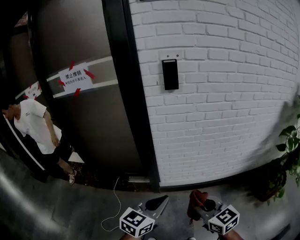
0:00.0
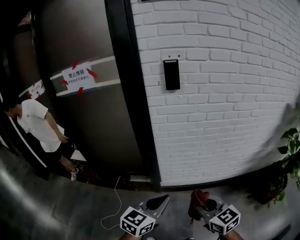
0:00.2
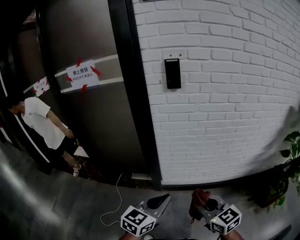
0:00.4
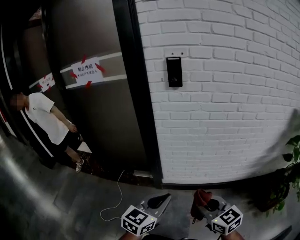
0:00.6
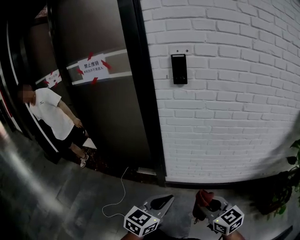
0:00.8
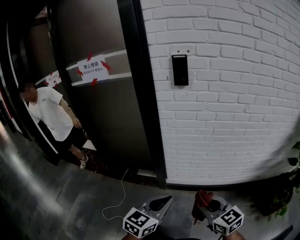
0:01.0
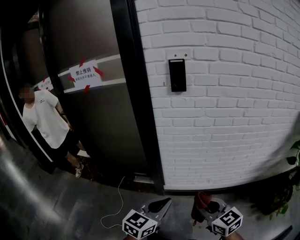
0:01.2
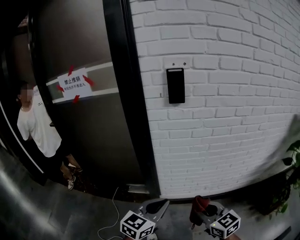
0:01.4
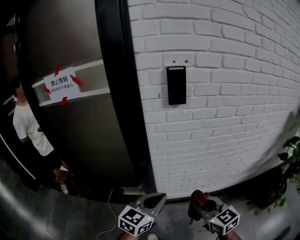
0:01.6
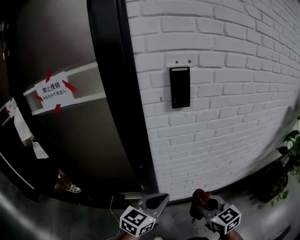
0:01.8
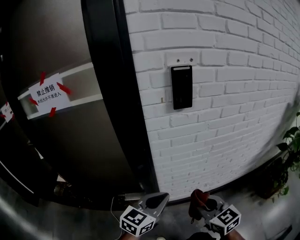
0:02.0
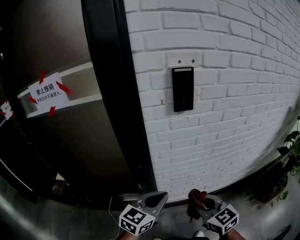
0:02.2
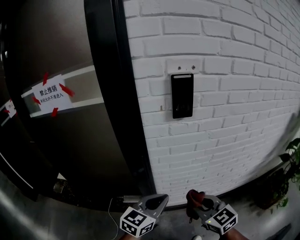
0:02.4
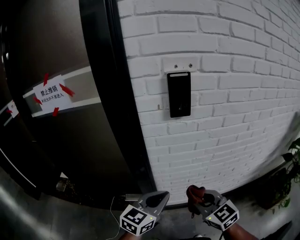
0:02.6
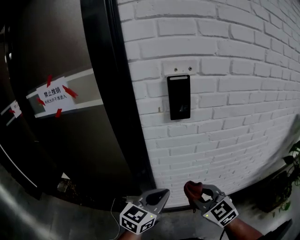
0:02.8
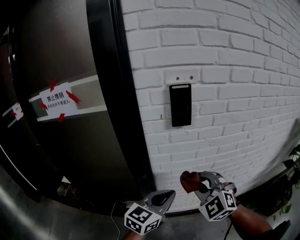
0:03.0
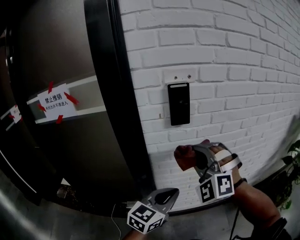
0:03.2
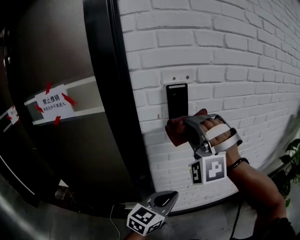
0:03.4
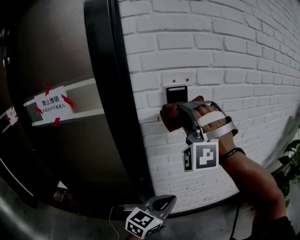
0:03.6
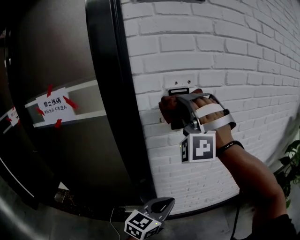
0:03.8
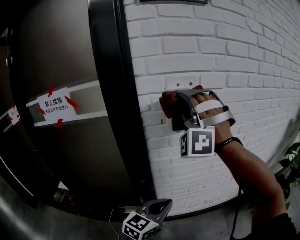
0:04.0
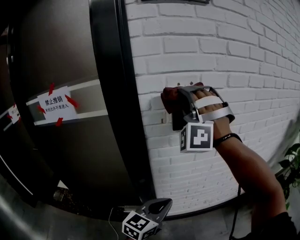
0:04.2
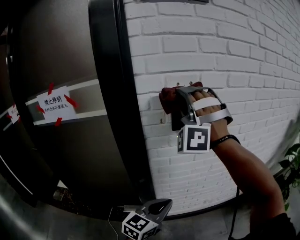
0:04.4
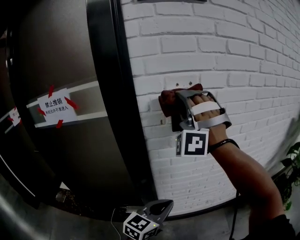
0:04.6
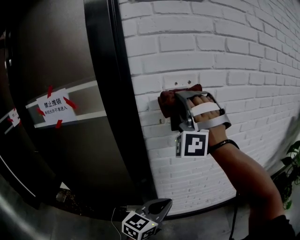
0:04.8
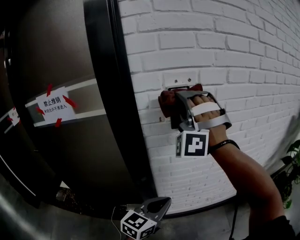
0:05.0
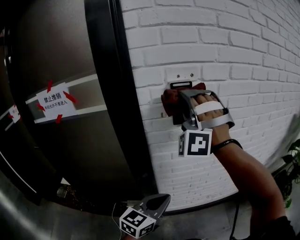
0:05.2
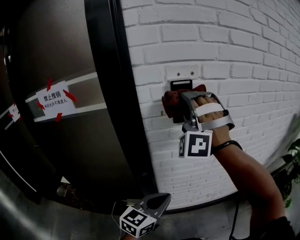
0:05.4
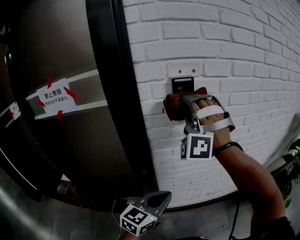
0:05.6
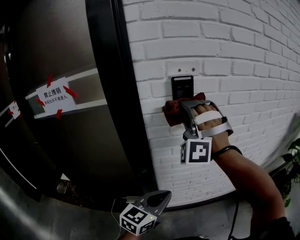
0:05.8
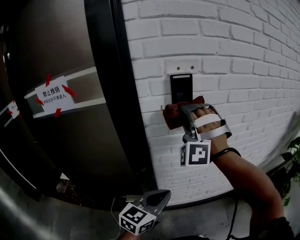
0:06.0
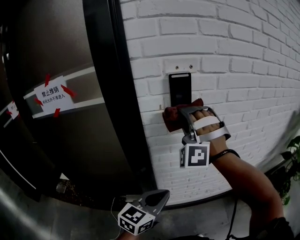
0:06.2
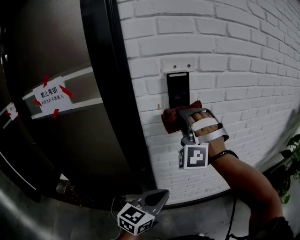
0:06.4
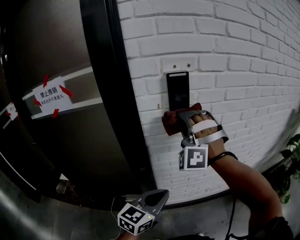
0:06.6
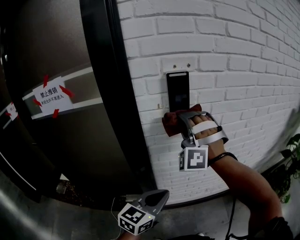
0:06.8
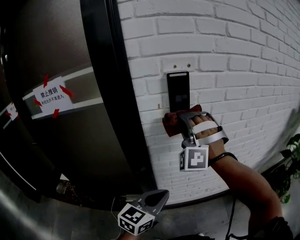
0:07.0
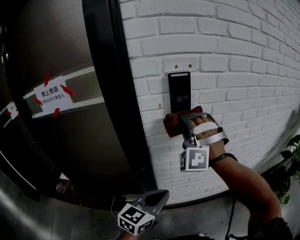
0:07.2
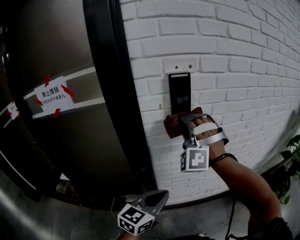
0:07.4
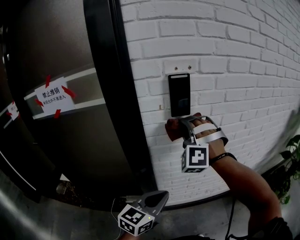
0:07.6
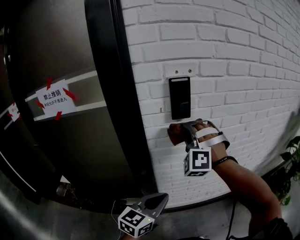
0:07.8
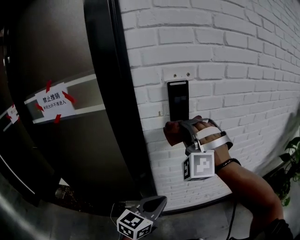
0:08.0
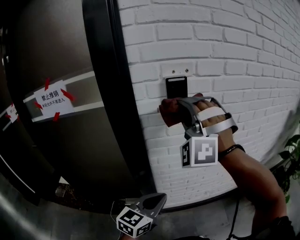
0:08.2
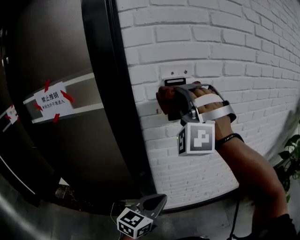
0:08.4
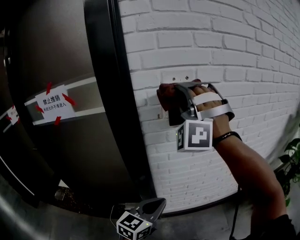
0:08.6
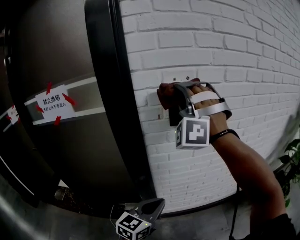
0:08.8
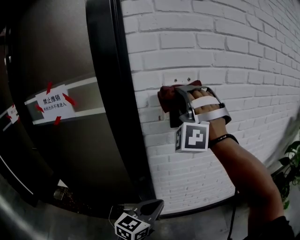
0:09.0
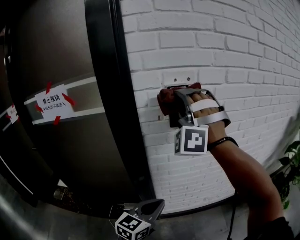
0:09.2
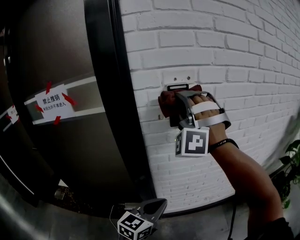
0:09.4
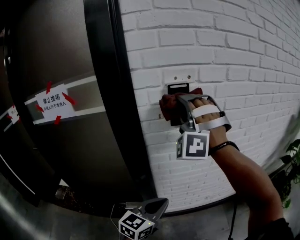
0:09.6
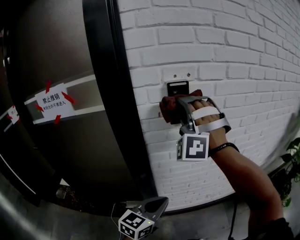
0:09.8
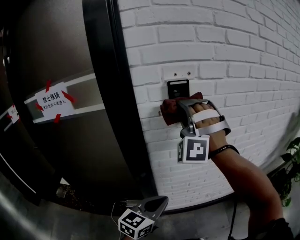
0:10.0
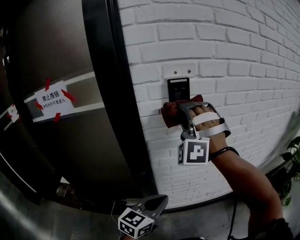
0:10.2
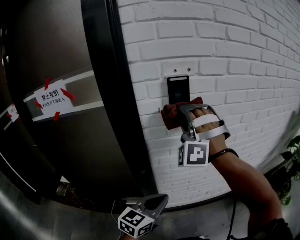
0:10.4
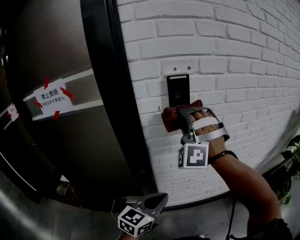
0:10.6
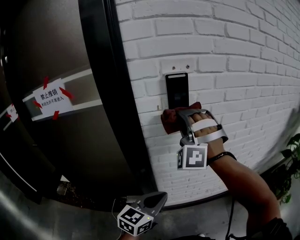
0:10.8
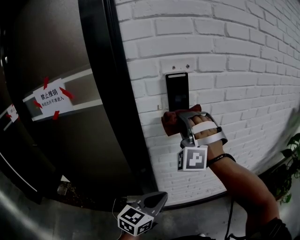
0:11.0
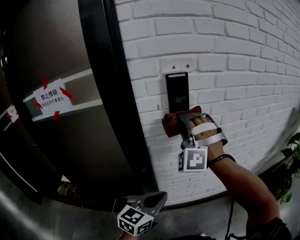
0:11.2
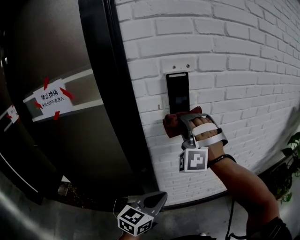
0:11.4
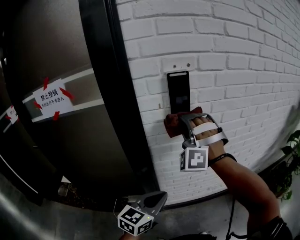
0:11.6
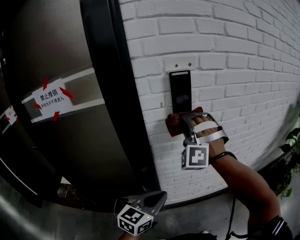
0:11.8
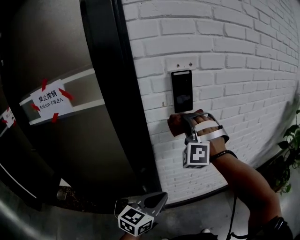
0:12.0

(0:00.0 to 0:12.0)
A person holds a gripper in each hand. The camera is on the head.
0:00.0 - 0:01.6: Both grippers move forward, roughly 15 cm.
0:01.6 - 0:03.0: The left gripper shifts roughly 10 cm forward and upward; the right gripper moves forward and upward, about 20 cm, and rolls counterclockwise, seen from behind, by some 50 degrees.
0:03.0 - 0:04.4: The right gripper travels upward and forward by approximately 30 cm, and points its fingers approximately 30 degrees further upward.
0:04.4 - 0:06.0: The right gripper travels downward by some 10 cm.
0:06.0 - 0:07.6: The right gripper travels downward by approximately 5 cm.
0:07.6 - 0:09.0: The right gripper is displaced upward by roughly 15 cm, and changes its angle by approximately 20 degrees.
0:09.0 - 0:10.4: The right gripper moves downward, approximately 10 cm.
0:10.4 - 0:12.0: The right gripper travels downward by some 5 cm.

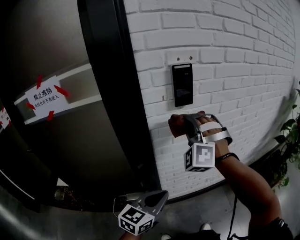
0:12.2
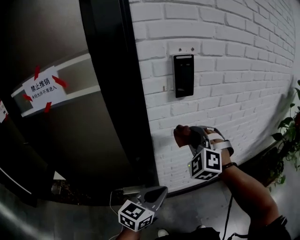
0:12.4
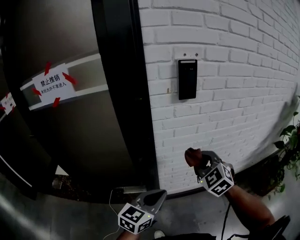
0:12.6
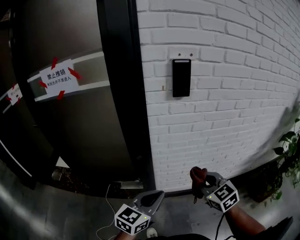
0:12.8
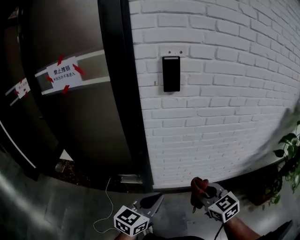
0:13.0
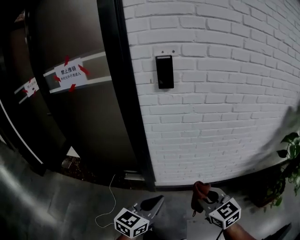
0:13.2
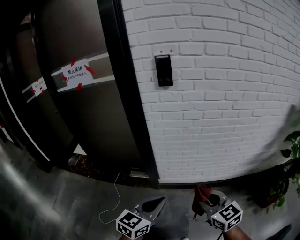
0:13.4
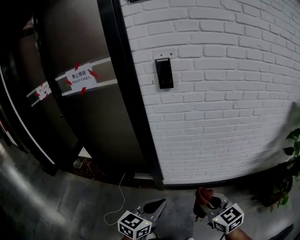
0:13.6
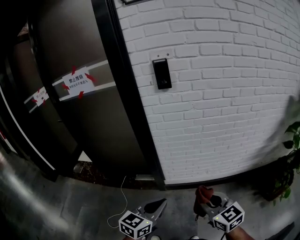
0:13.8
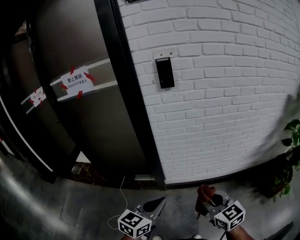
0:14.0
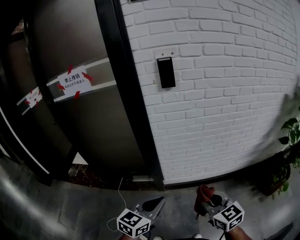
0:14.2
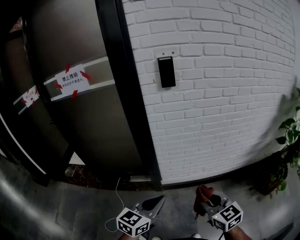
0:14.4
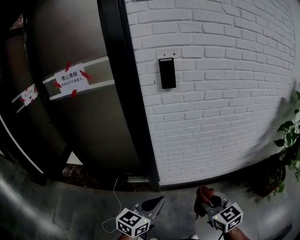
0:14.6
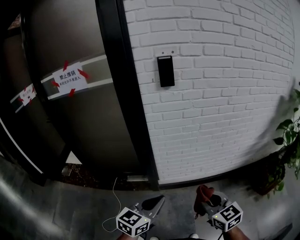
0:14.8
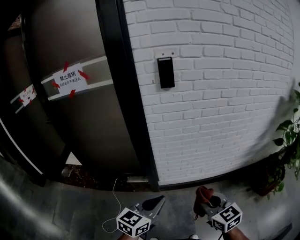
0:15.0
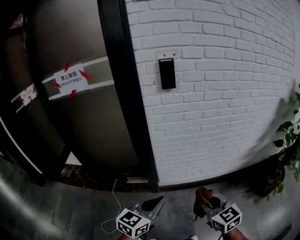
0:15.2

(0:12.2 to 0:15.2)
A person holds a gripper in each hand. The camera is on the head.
0:12.2 - 0:13.8: The right gripper changes place by some 50 cm, and twists some 80 degrees clockwise, seen from behind. Meanwhile the left gripper changes place by some 25 cm.
0:13.8 - 0:15.2: The left gripper heads to the left, covering about 5 cm.

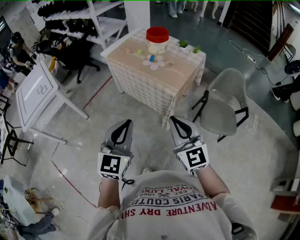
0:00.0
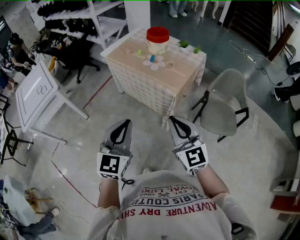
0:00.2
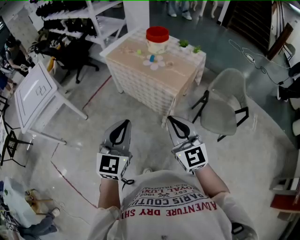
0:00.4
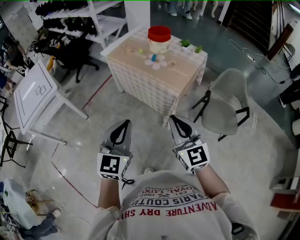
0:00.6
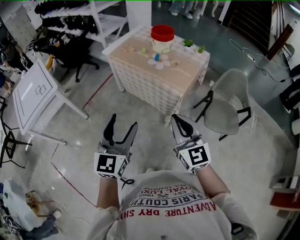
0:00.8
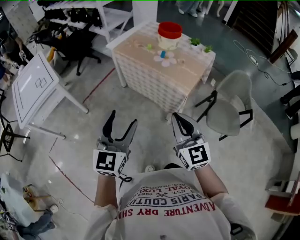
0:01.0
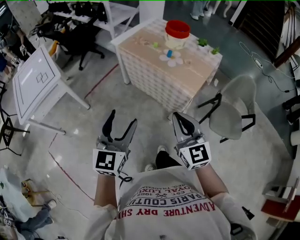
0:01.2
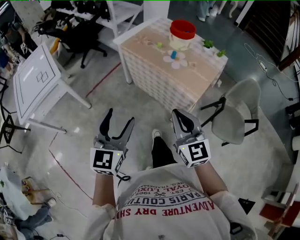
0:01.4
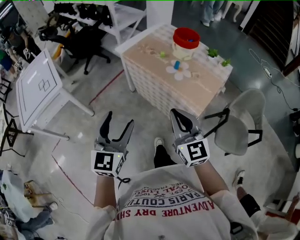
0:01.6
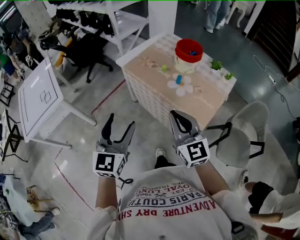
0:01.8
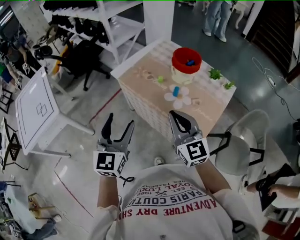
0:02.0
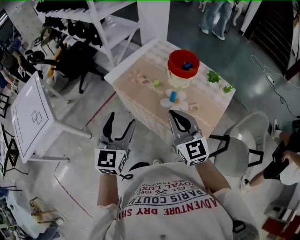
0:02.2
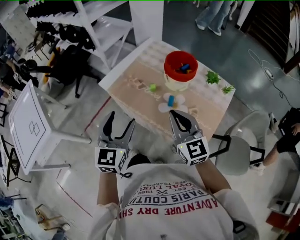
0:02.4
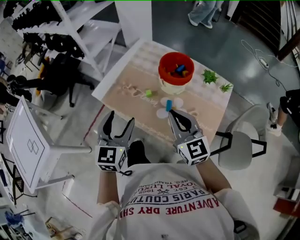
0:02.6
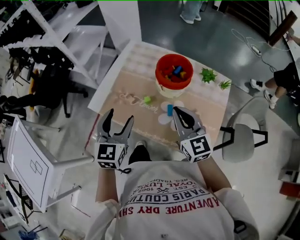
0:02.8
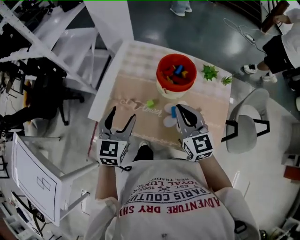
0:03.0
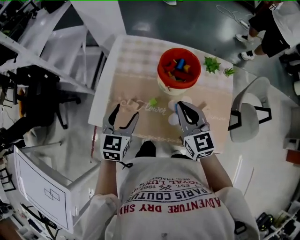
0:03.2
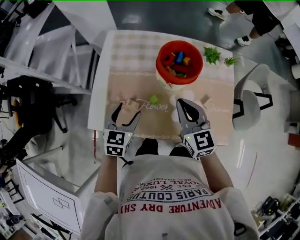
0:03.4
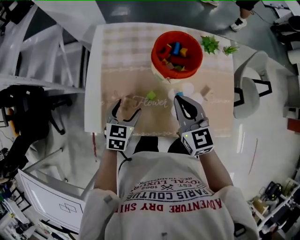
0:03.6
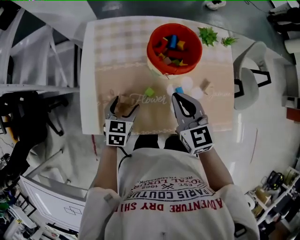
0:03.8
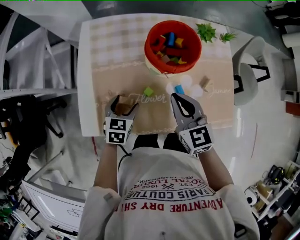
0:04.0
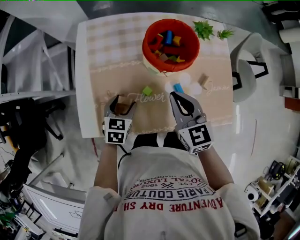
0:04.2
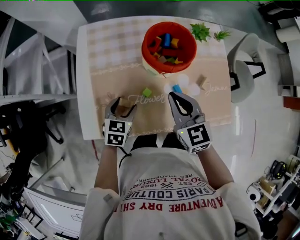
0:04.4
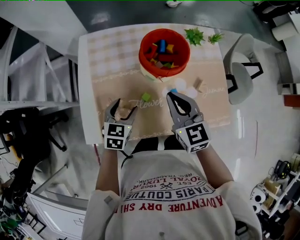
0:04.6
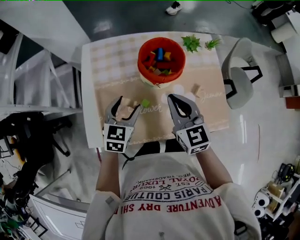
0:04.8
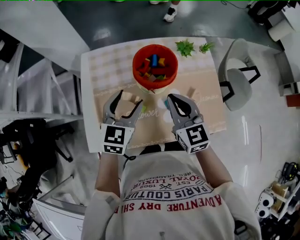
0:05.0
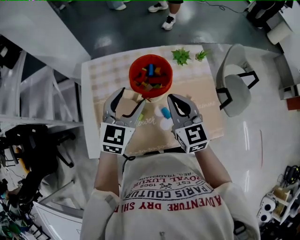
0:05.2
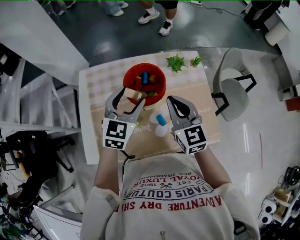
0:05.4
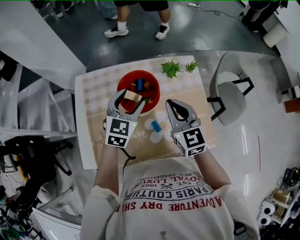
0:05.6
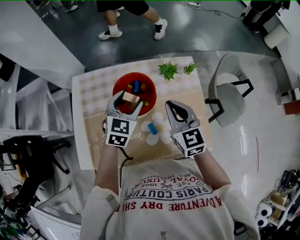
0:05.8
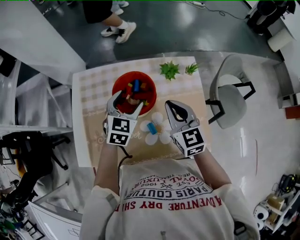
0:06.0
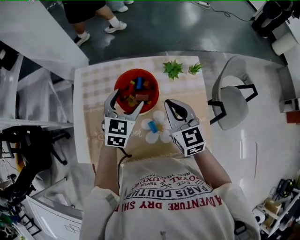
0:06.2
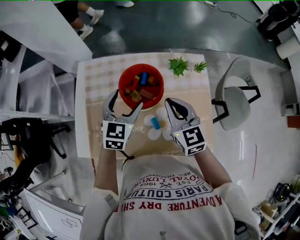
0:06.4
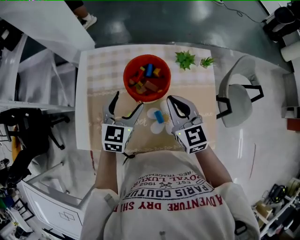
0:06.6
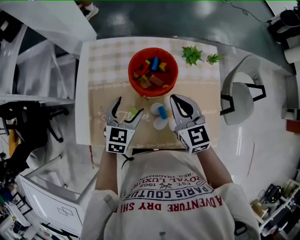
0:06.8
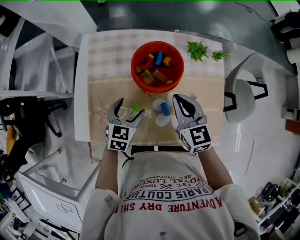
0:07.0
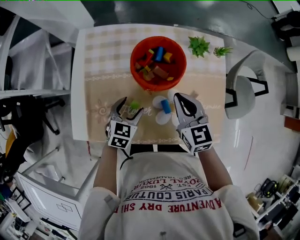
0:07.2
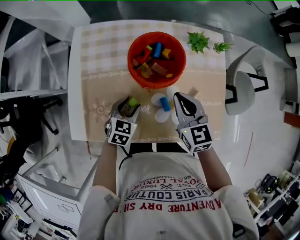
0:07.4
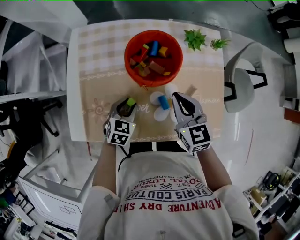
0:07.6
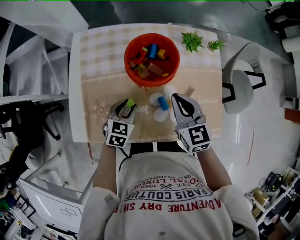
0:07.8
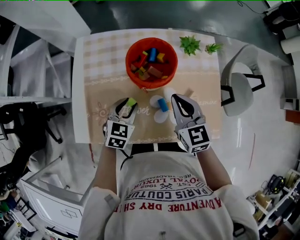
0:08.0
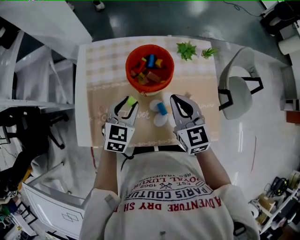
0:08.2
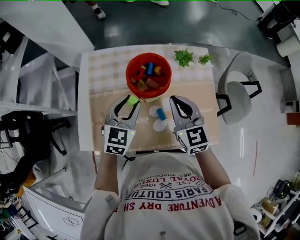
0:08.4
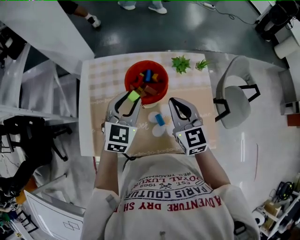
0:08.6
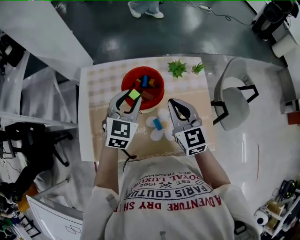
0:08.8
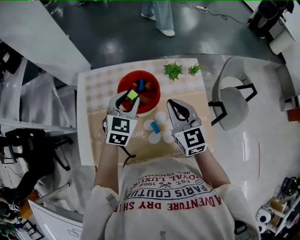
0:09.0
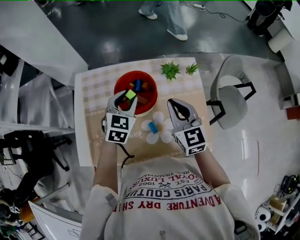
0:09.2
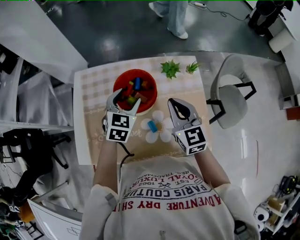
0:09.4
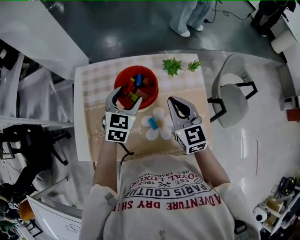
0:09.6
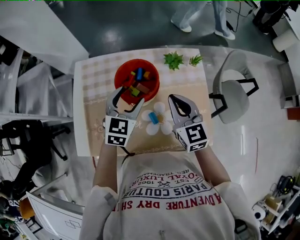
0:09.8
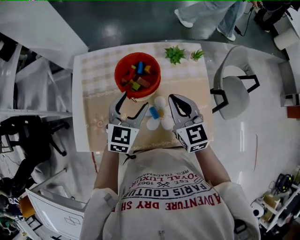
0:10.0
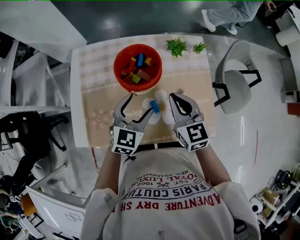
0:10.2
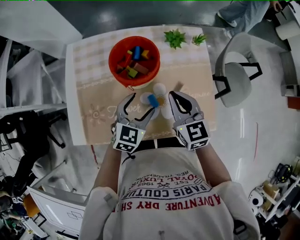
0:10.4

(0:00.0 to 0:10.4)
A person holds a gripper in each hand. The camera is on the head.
0:00.0 - 0:01.4: The right gripper is displaced forward and to the left by about 15 cm; the left gripper goes roughly 20 cm to the left and forward, and opens.
0:01.4 - 0:03.0: The pair of grippers is taken roughly 50 cm. The left gripper rotates approximately 30 degrees; the right gripper changes its angle by some 20 degrees.
0:03.0 - 0:04.4: The right gripper travels downward by approximately 10 cm, and turns by about 20 degrees. The left gripper shifts roughly 20 cm downward, and changes its angle by roughly 40 degrees.
0:04.4 - 0:06.0: The left gripper is displaced forward, upward and to the right by roughly 30 cm; the right gripper goes roughly 20 cm to the right, forward and upward.
0:06.0 - 0:07.4: The left gripper shifts roughly 25 cm downward, backward and to the left. The right gripper goes about 10 cm downward.
0:07.4 - 0:09.0: The right gripper moves upward, about 10 cm. The left gripper is displaced upward and forward by roughly 25 cm, and changes its angle by about 20 degrees.
0:09.0 - 0:10.4: The right gripper travels downward and backward by roughly 10 cm, while the left gripper moves backward and downward, some 15 cm, and opens its fingers.
